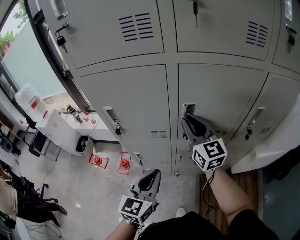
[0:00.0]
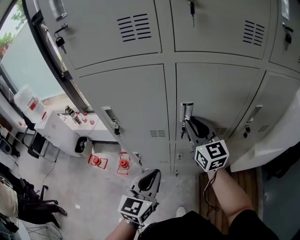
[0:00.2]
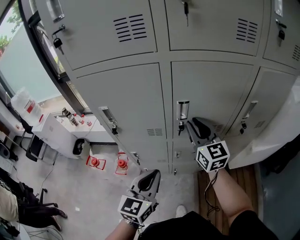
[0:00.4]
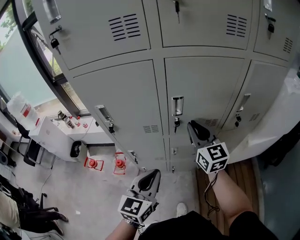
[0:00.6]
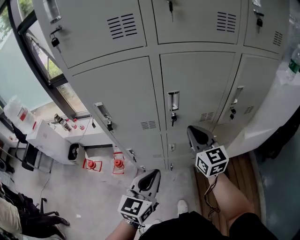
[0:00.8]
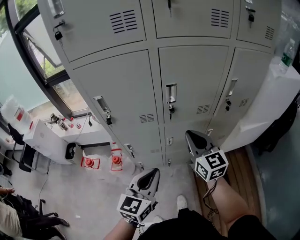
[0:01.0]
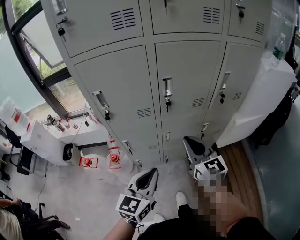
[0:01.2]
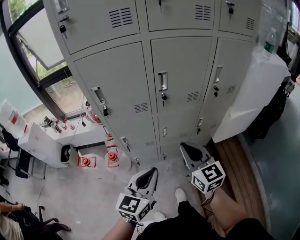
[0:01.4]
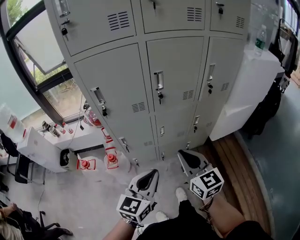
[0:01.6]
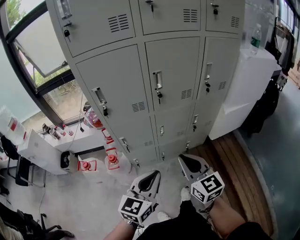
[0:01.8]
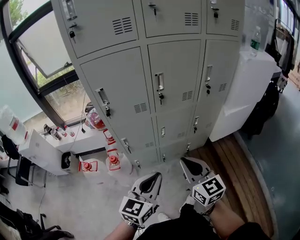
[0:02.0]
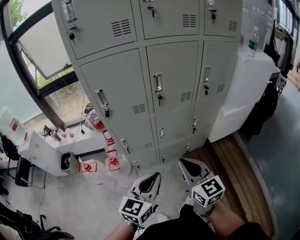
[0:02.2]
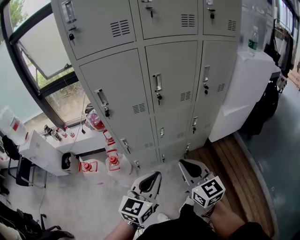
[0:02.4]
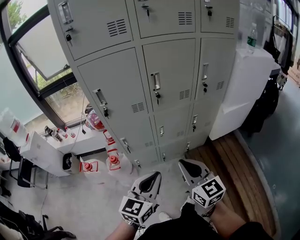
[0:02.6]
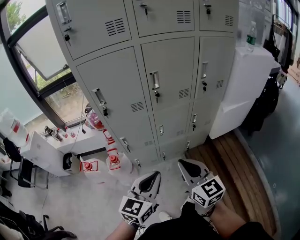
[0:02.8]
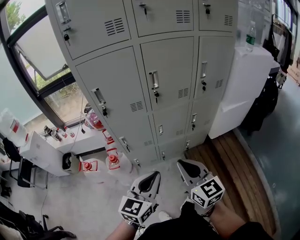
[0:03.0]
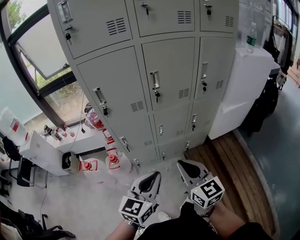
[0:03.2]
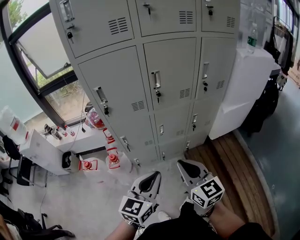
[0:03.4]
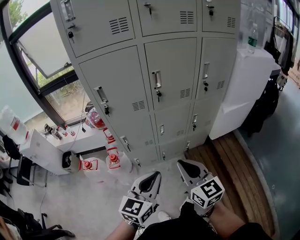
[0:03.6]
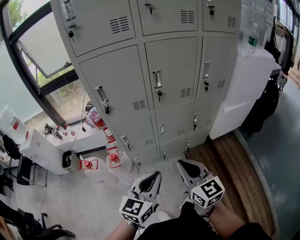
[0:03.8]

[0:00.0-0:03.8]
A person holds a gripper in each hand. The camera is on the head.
0:00.0 to 0:01.2: The right gripper is displaced backward by approximately 20 cm; the left gripper goes approximately 10 cm backward.
0:01.2 to 0:02.6: The right gripper travels backward by approximately 20 cm. Meanwhile the left gripper heads backward, covering about 10 cm.
0:02.6 to 0:03.8: Both grippers stay put.

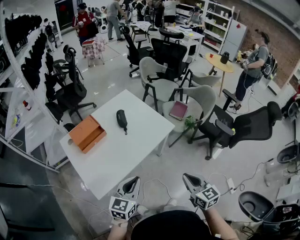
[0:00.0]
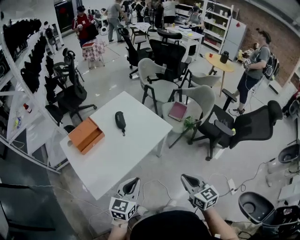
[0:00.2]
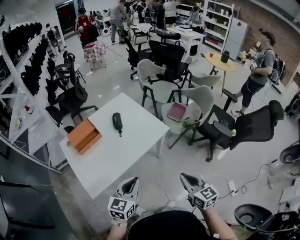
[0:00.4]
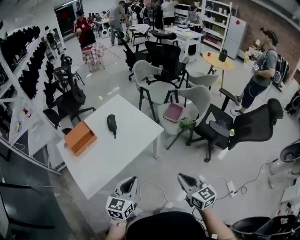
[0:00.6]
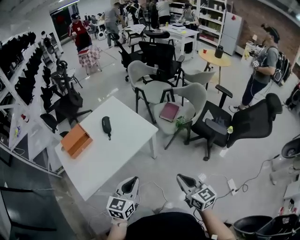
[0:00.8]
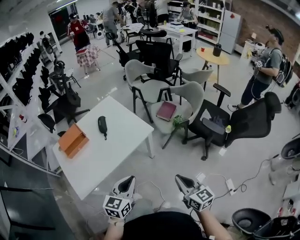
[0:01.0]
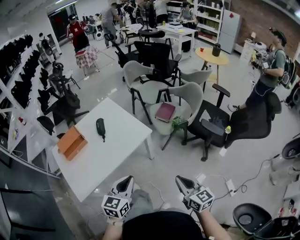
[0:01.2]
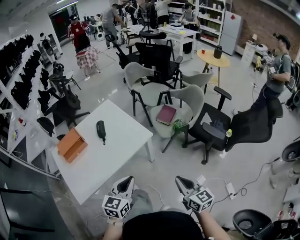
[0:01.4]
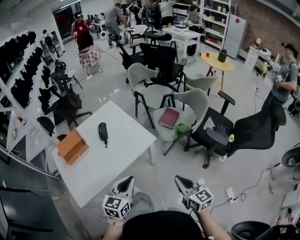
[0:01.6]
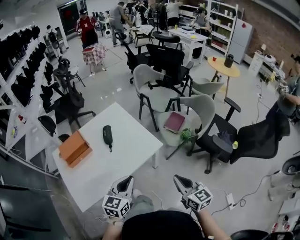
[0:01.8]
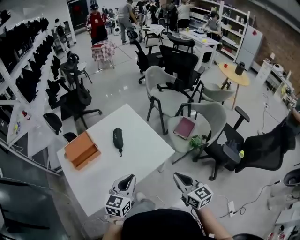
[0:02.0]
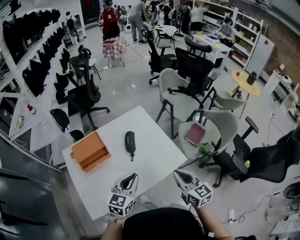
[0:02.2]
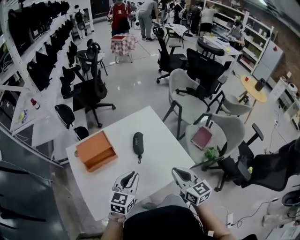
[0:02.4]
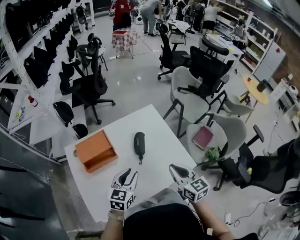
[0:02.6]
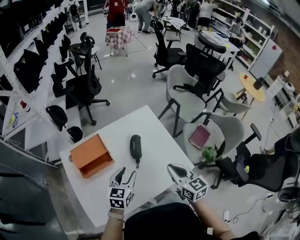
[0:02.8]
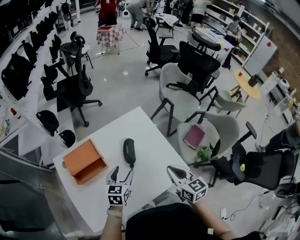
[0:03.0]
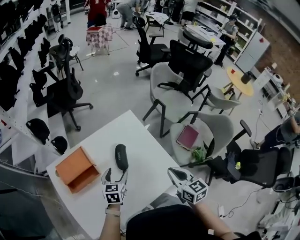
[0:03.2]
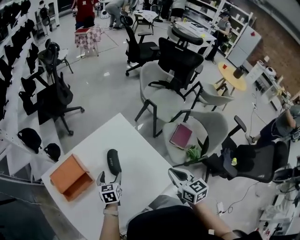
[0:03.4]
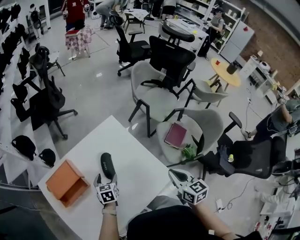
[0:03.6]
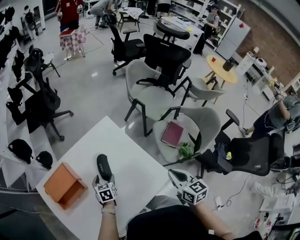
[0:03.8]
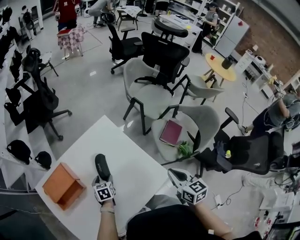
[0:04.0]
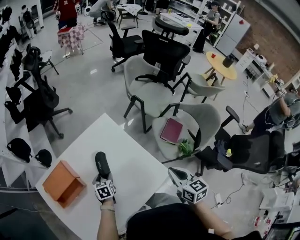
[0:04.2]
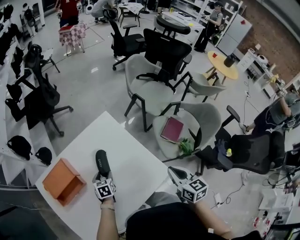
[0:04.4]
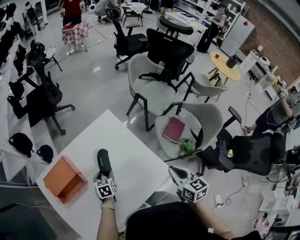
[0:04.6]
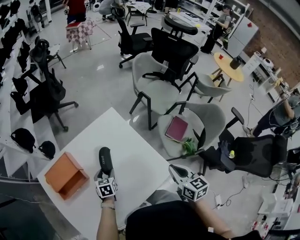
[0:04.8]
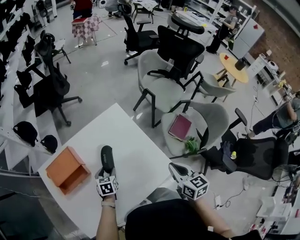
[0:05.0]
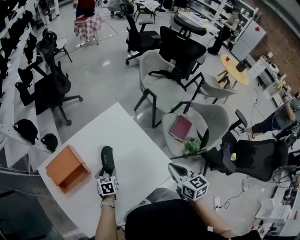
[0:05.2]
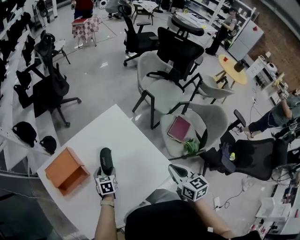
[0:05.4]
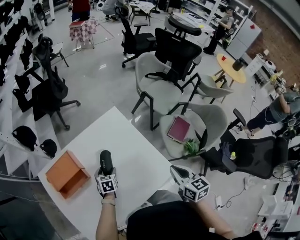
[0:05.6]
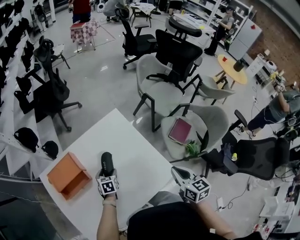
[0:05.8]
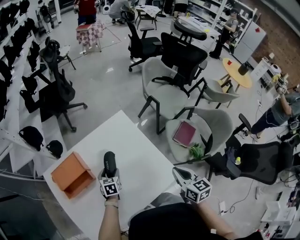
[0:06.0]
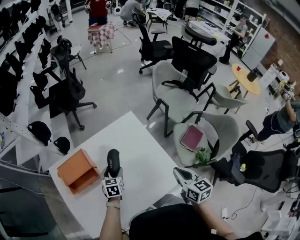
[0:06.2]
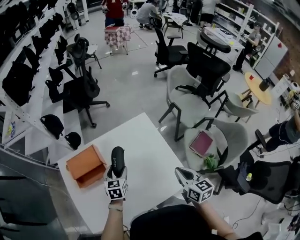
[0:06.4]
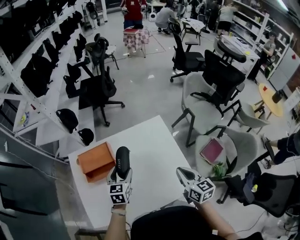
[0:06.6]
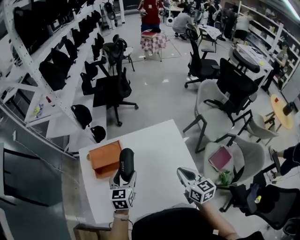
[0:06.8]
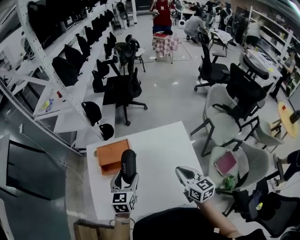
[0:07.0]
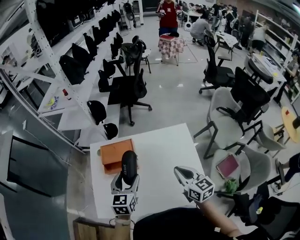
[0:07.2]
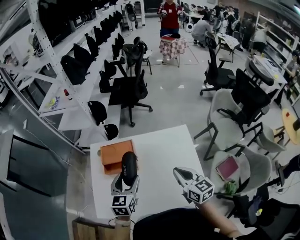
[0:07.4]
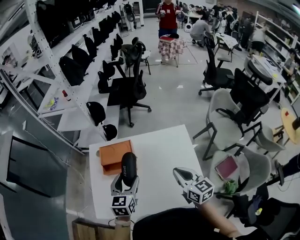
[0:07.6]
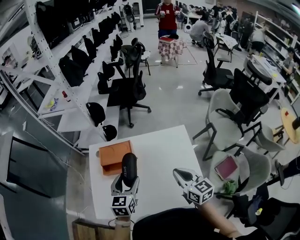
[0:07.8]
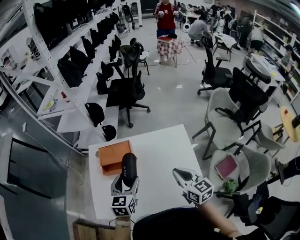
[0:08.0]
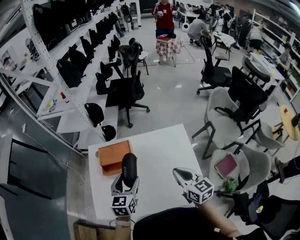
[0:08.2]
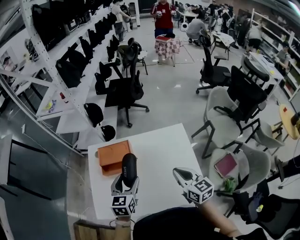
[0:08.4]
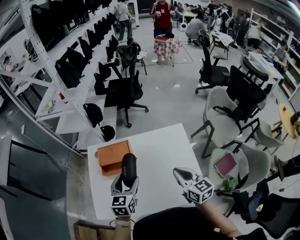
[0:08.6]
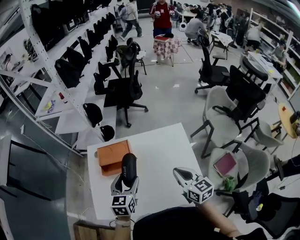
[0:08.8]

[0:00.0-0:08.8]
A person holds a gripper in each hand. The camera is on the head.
0:00.0 to 0:01.4: The two grippers go approximately 20 cm to the right.
0:01.4 to 0:03.0: The pair of grippers is taken forward and to the left, about 50 cm. The left gripper turns by about 20 degrees, and opens up.
0:03.0 to 0:04.4: The right gripper goes some 15 cm to the right, while the left gripper travels downward and forward by about 20 cm, and changes its angle by some 20 degrees.
0:04.4 to 0:05.8: The grippers make only small movements.
0:05.8 to 0:07.4: The left gripper goes approximately 25 cm upward, and changes its angle by roughly 40 degrees, while the right gripper moves approximately 25 cm, and changes its angle by roughly 40 degrees.
0:07.4 to 0:08.8: The grippers move only a little.

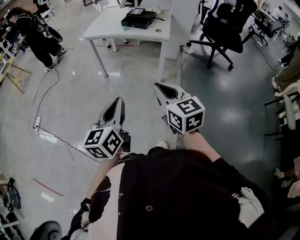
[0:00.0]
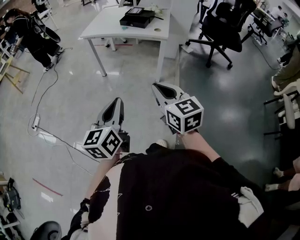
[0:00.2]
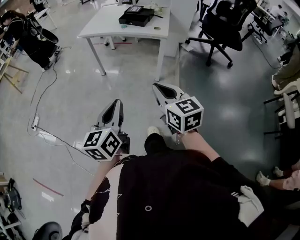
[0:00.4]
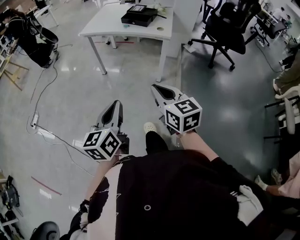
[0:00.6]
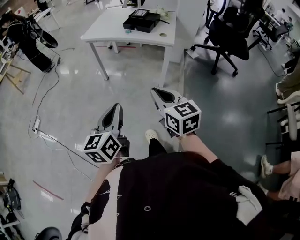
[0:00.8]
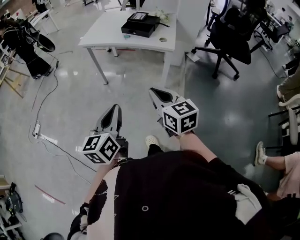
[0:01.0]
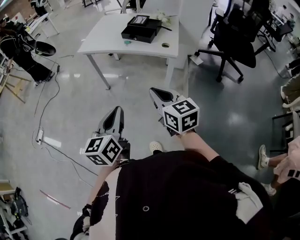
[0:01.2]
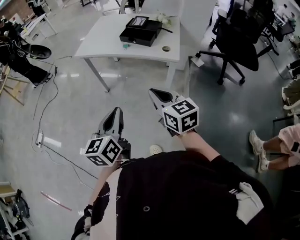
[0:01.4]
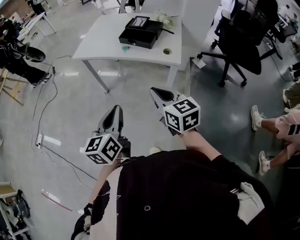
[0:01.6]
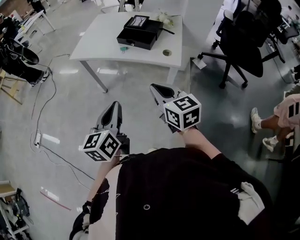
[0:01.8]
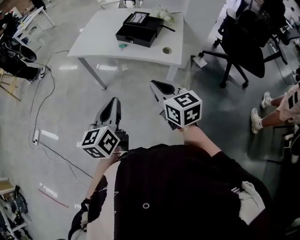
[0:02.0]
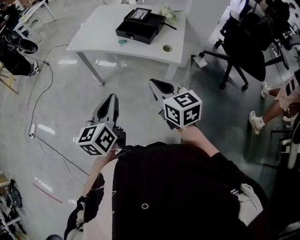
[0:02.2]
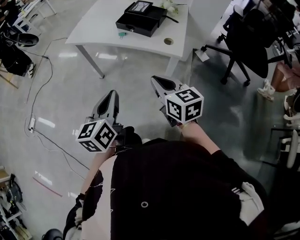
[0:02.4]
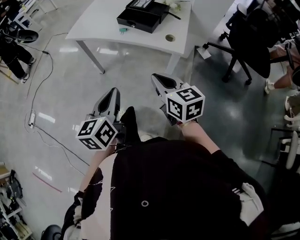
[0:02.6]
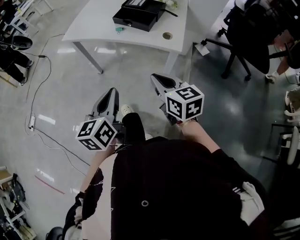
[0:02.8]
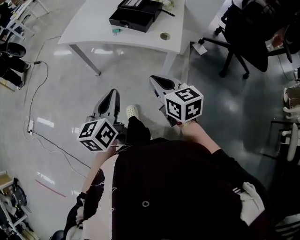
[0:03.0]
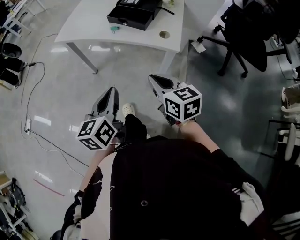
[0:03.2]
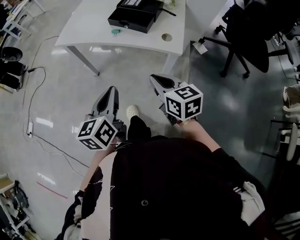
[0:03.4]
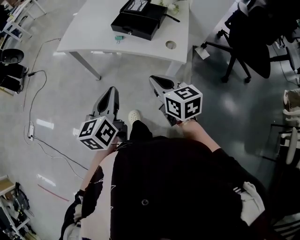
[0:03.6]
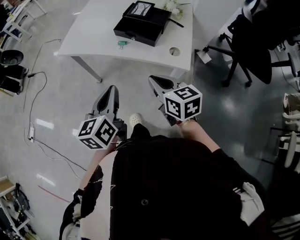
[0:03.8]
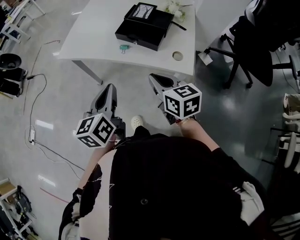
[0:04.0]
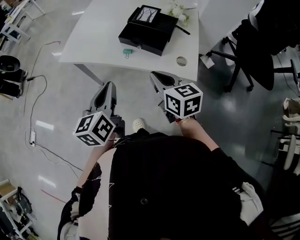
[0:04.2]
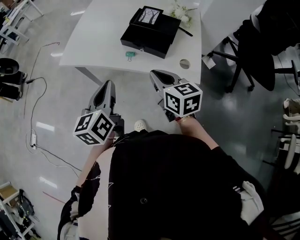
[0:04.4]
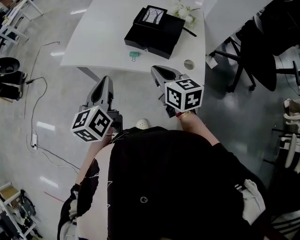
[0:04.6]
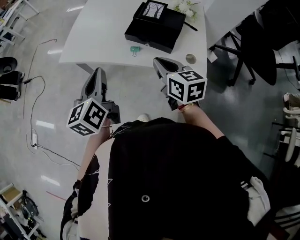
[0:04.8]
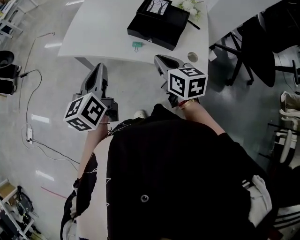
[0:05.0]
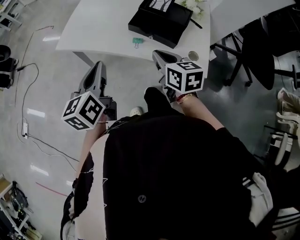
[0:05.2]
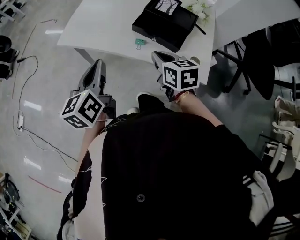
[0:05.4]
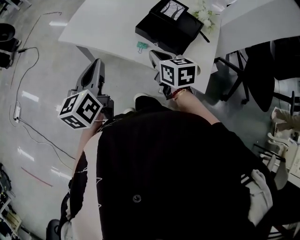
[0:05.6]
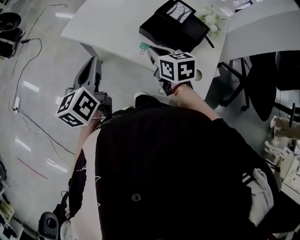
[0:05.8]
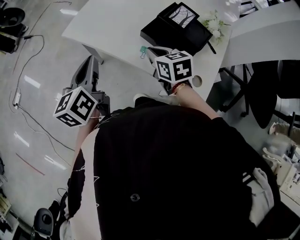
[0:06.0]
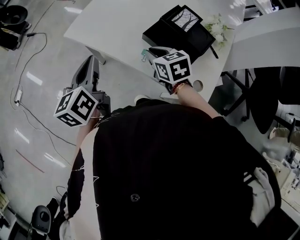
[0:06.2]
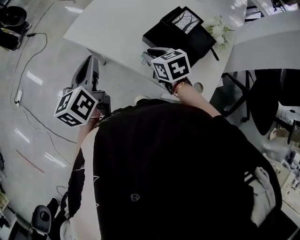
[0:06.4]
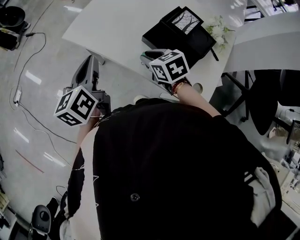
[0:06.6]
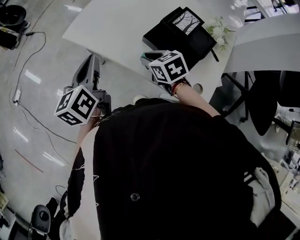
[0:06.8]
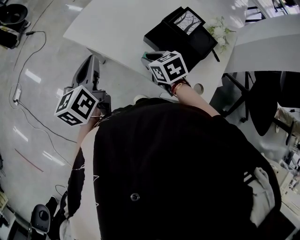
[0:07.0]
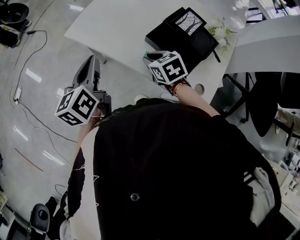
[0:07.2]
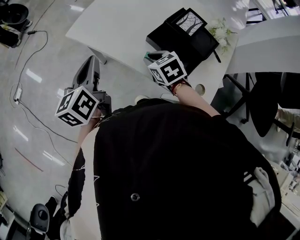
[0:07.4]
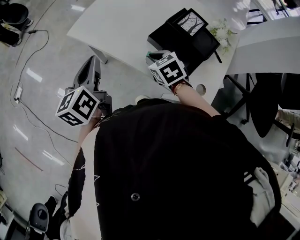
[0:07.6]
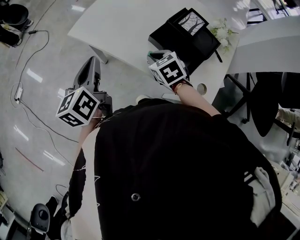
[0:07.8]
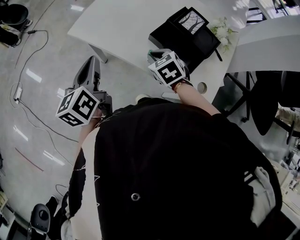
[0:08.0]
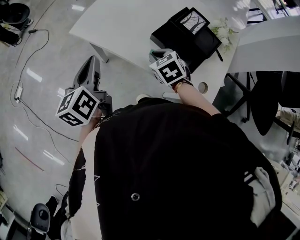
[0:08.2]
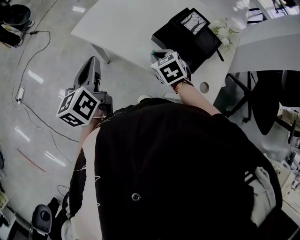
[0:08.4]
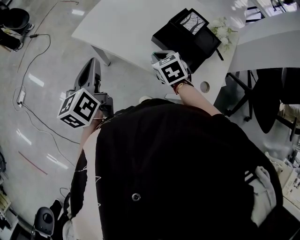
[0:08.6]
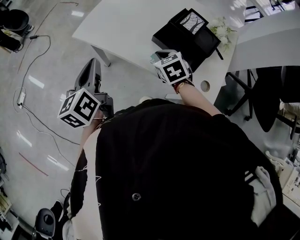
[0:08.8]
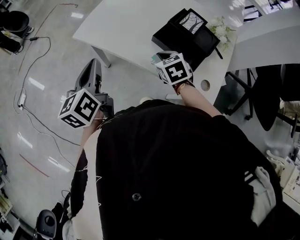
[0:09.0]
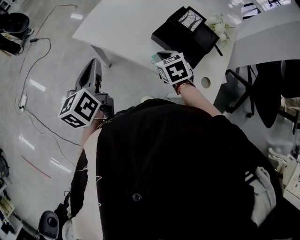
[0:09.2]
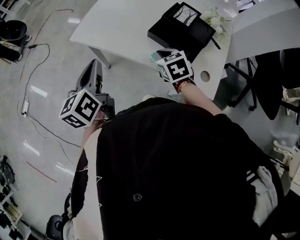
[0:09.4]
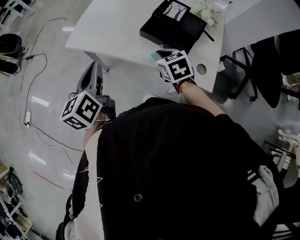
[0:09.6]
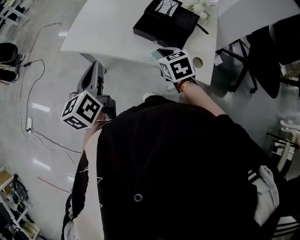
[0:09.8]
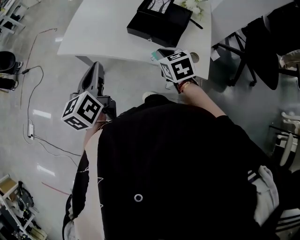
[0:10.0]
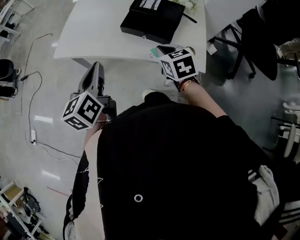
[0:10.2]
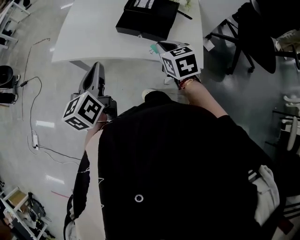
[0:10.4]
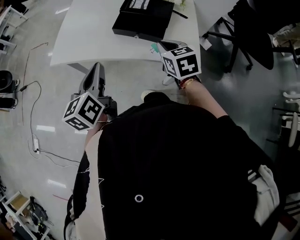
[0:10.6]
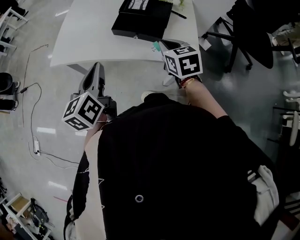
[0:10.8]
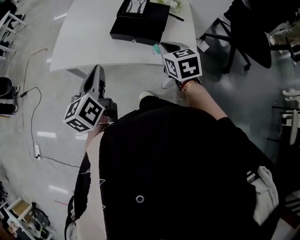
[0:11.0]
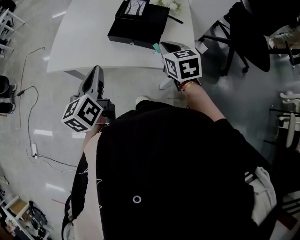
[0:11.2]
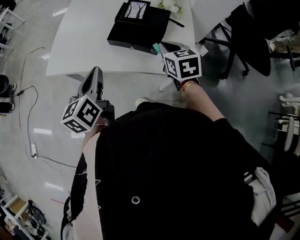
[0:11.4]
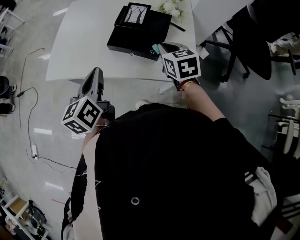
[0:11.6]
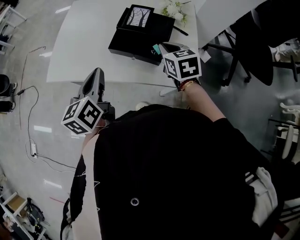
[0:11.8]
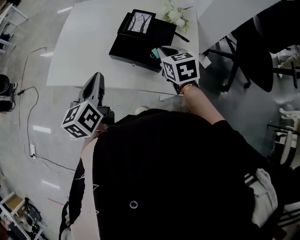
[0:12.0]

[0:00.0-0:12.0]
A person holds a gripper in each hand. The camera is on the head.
0:00.0 to 0:01.6: Both grippers move forward, roughly 30 cm.
0:01.6 to 0:03.0: The right gripper travels downward and forward by roughly 10 cm; the left gripper is displaced forward by about 5 cm.
0:03.0 to 0:04.4: Both grippers travel together forward, some 25 cm.
0:04.4 to 0:06.0: The right gripper travels forward and downward by approximately 15 cm, and swivels roughly 30 degrees. The left gripper goes approximately 15 cm forward and to the left.
0:06.0 to 0:07.6: The right gripper goes some 5 cm downward, and swivels approximately 20 degrees.
0:07.6 to 0:09.0: The grippers stay close to where they were, moving slightly.
0:09.0 to 0:10.4: The left gripper shifts approximately 10 cm to the right, and swivels about 20 degrees. The right gripper heads to the right, backward and upward, covering roughly 15 cm, and changes its angle by approximately 30 degrees.
0:10.4 to 0:12.0: Both grippers move forward, approximately 10 cm.
